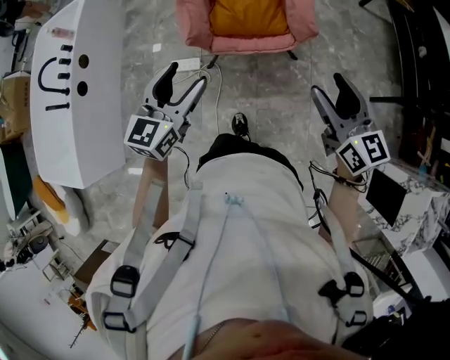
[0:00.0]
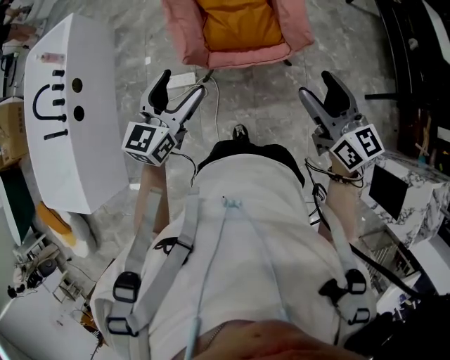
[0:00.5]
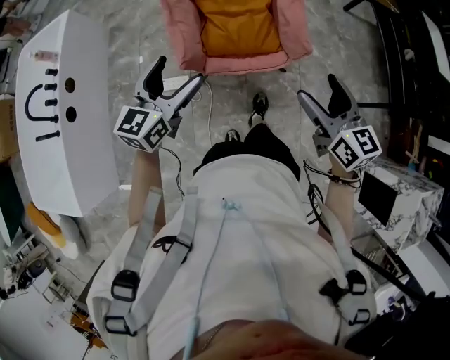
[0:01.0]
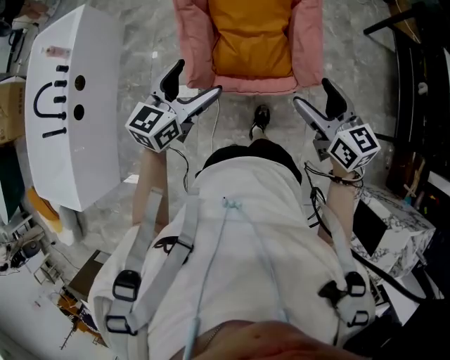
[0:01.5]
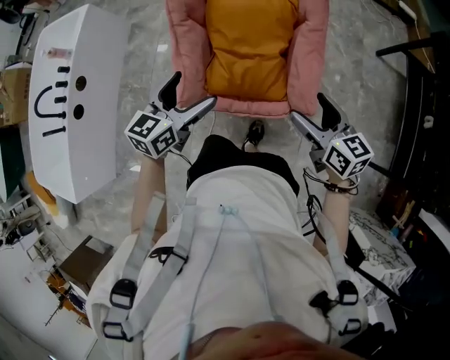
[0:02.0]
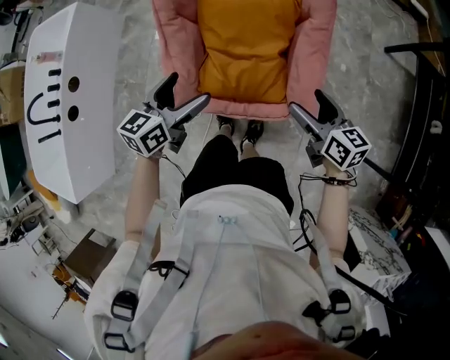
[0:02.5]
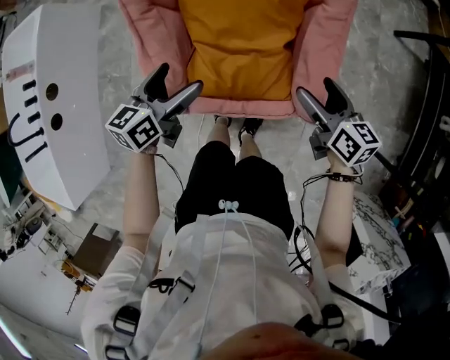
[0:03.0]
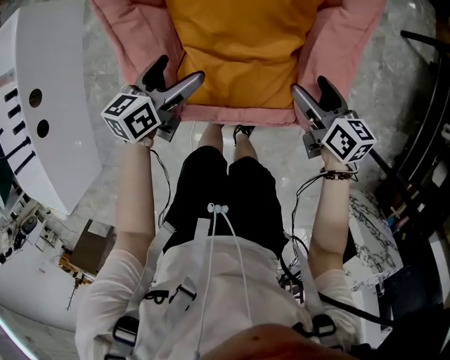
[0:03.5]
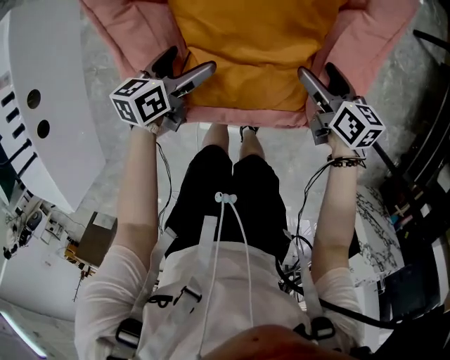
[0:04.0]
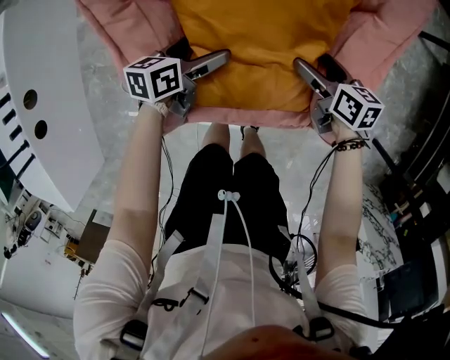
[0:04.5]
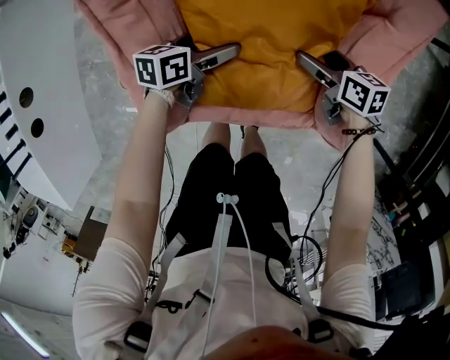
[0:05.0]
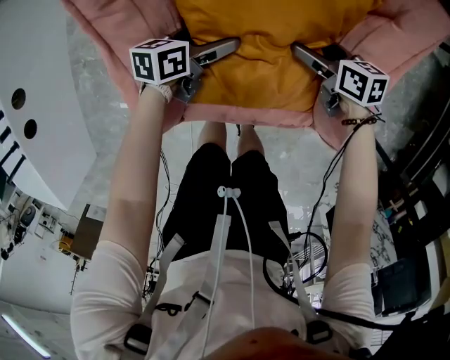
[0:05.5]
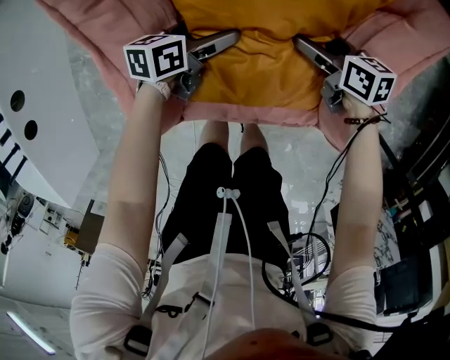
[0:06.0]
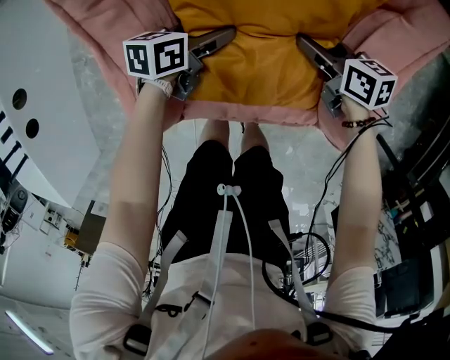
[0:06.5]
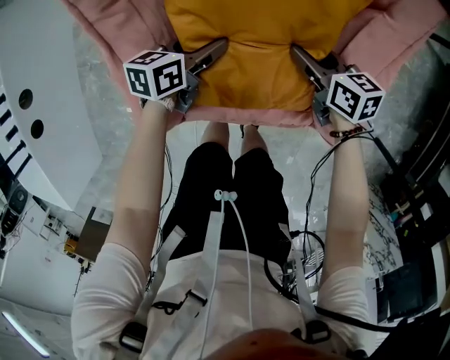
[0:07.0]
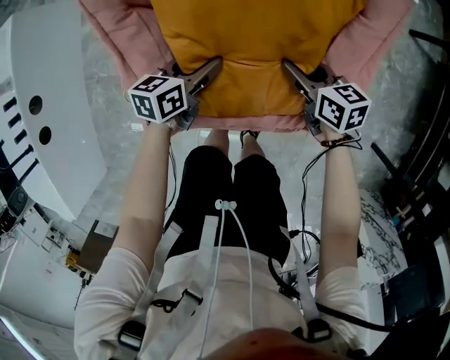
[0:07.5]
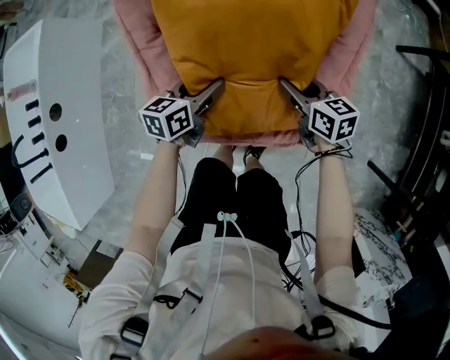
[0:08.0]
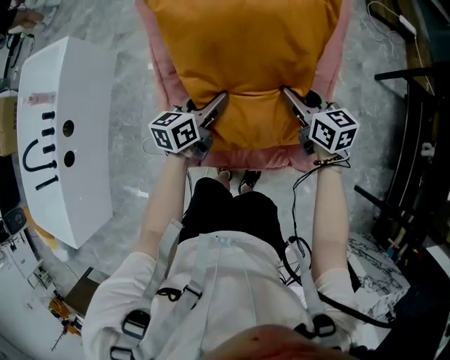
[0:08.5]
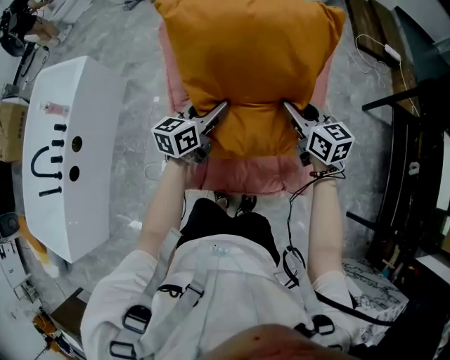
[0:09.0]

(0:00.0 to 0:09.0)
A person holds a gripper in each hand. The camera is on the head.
0:00.0 - 0:02.0: Both grippers move forward, approximately 35 cm. The left gripper opens up, while the right gripper changes its angle by roughly 20 degrees.
0:02.0 - 0:04.5: Both grippers travel together downward and forward, roughly 50 cm. The right gripper rotates roughly 30 degrees. The left gripper rotates some 40 degrees.
0:04.5 - 0:07.0: The left gripper moves approximately 10 cm downward and comes back, and closes up. Meanwhile the right gripper closes.
0:07.0 - 0:09.0: Both grippers move upward, roughly 35 cm. The right gripper changes its angle by roughly 30 degrees, while the left gripper turns by roughly 30 degrees.

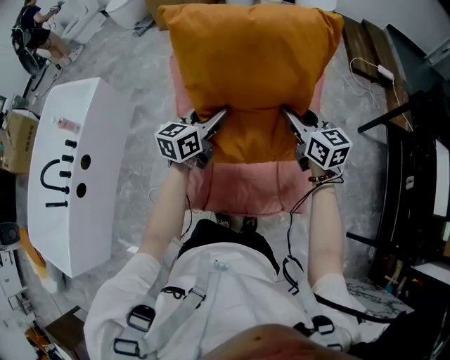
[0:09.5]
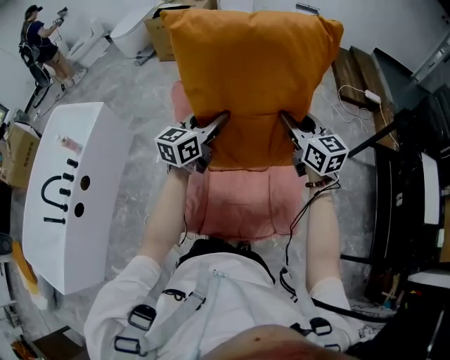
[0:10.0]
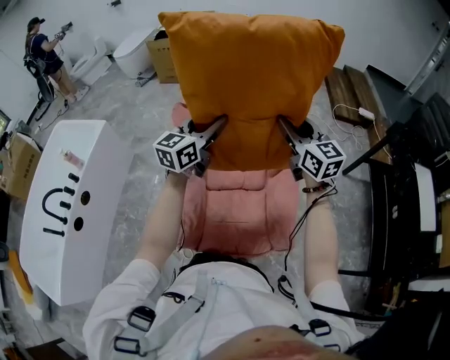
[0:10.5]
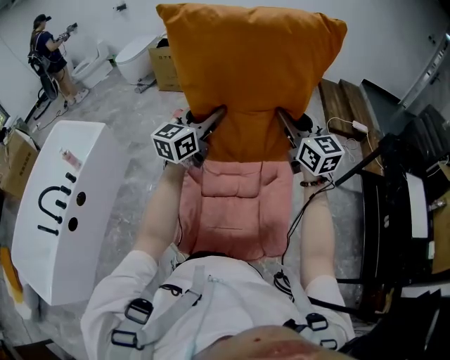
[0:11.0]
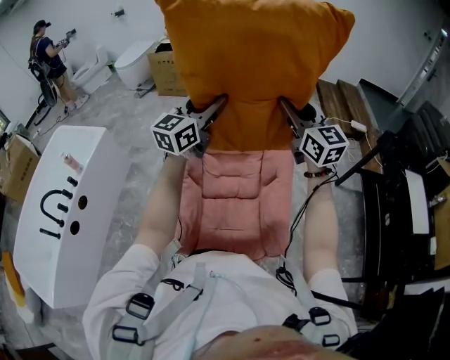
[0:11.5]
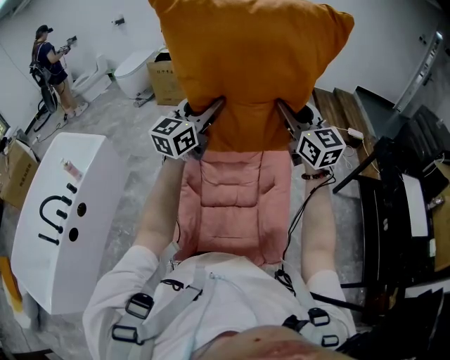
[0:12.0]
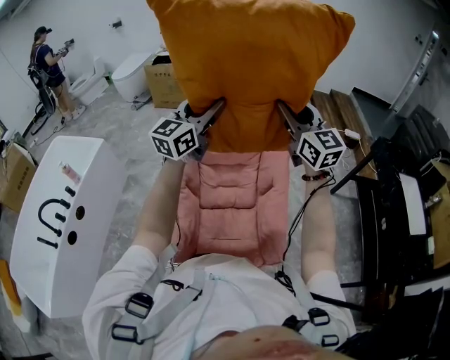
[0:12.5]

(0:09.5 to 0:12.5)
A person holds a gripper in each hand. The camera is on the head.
0:09.5 - 0:11.0: Both grippers travel together upward, roughly 20 cm. The right gripper swivels approximately 20 degrees. The left gripper swivels about 20 degrees.
0:11.0 - 0:12.5: The grippers both shift upward by some 5 cm.

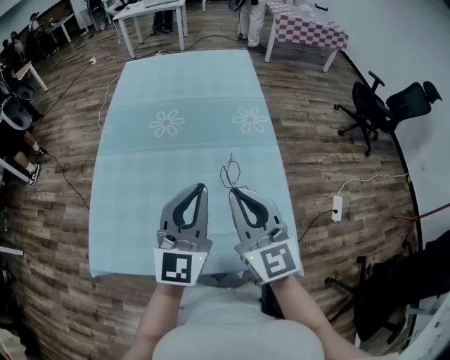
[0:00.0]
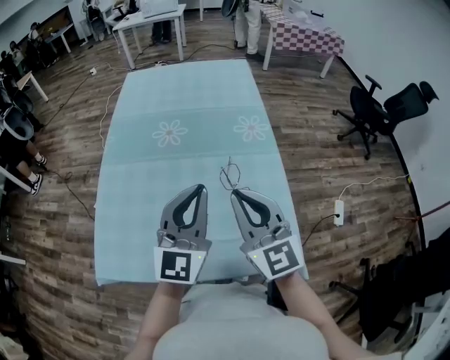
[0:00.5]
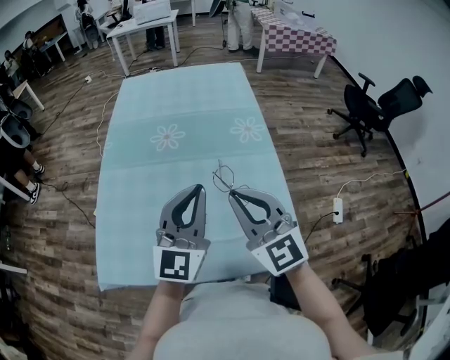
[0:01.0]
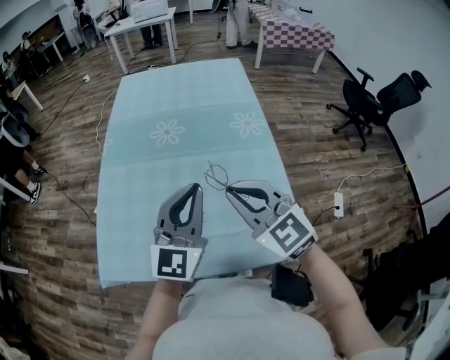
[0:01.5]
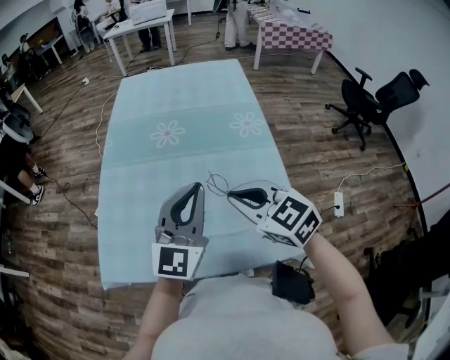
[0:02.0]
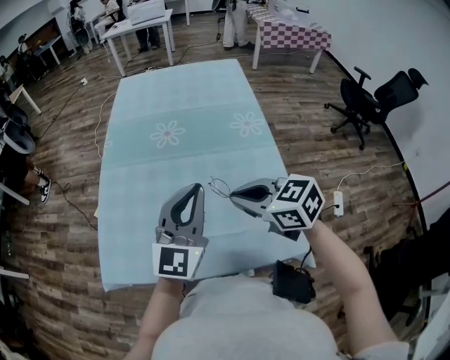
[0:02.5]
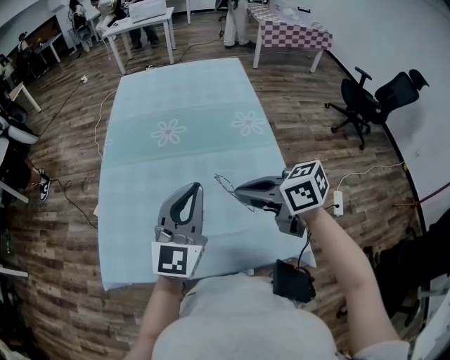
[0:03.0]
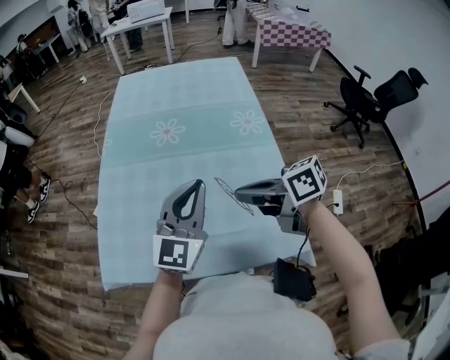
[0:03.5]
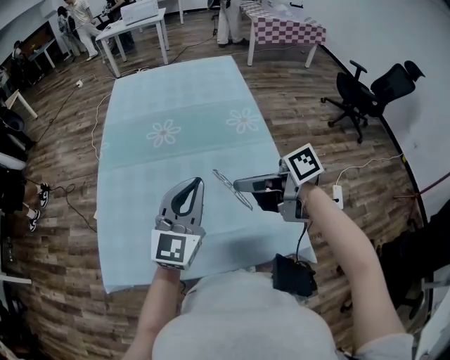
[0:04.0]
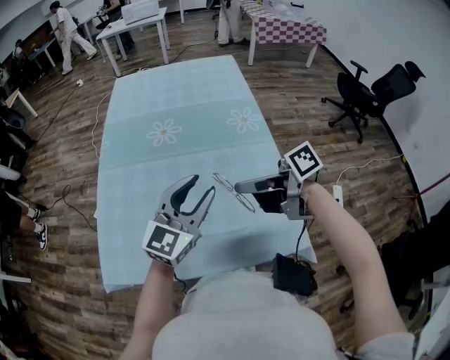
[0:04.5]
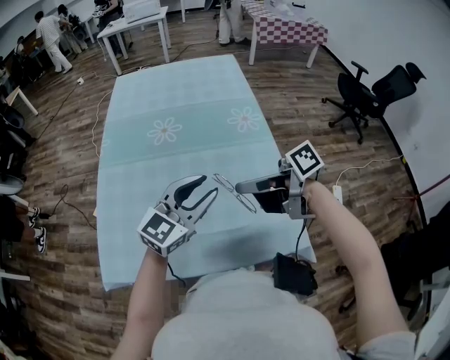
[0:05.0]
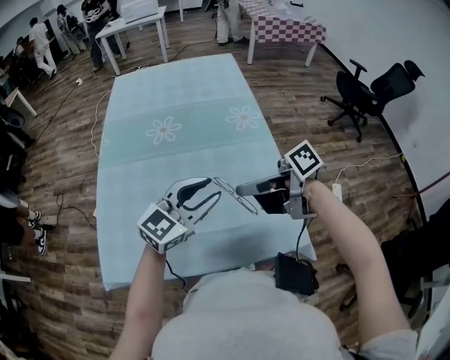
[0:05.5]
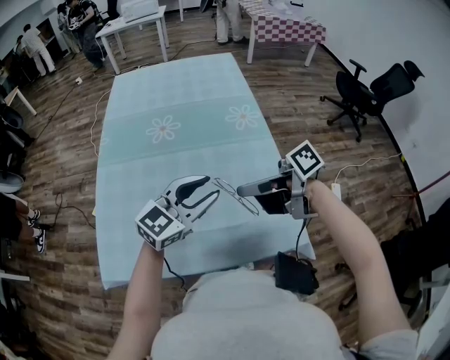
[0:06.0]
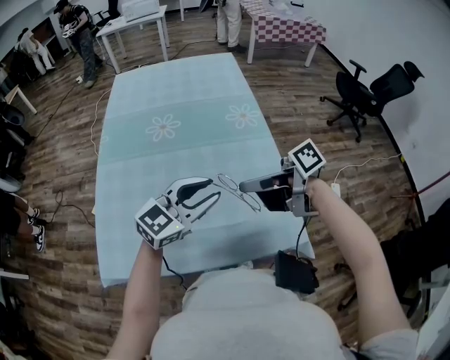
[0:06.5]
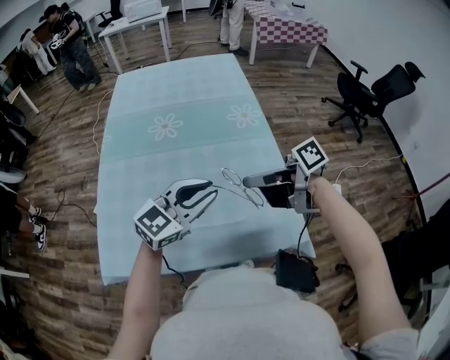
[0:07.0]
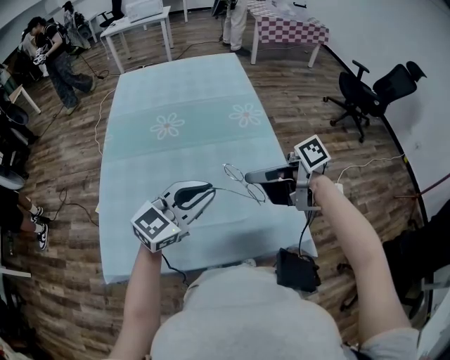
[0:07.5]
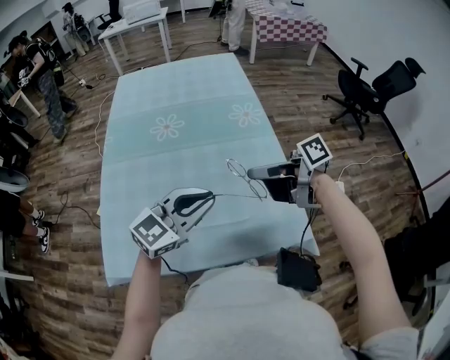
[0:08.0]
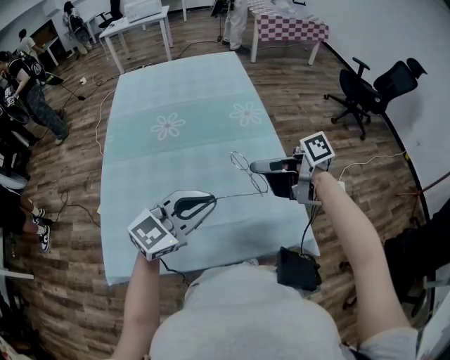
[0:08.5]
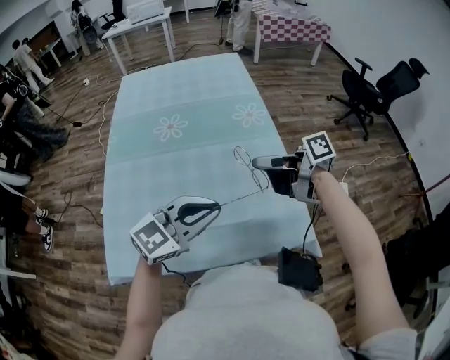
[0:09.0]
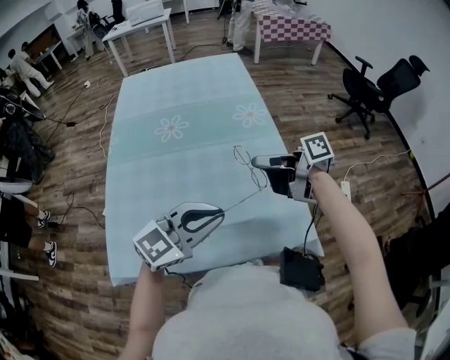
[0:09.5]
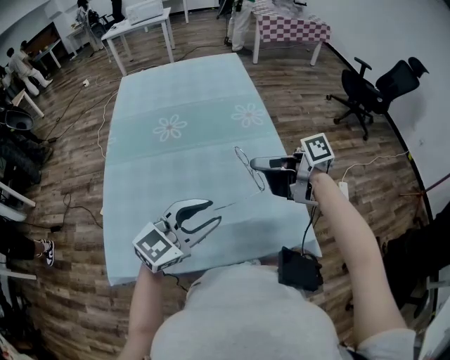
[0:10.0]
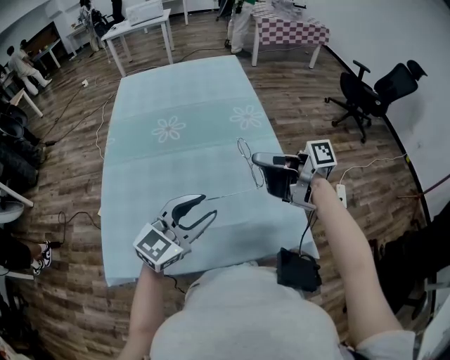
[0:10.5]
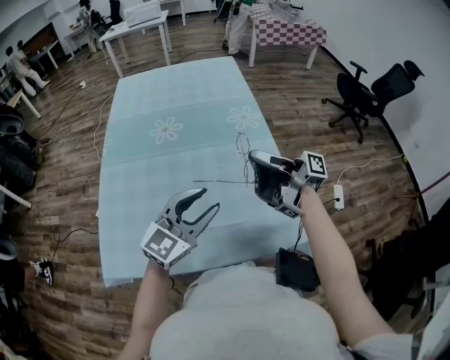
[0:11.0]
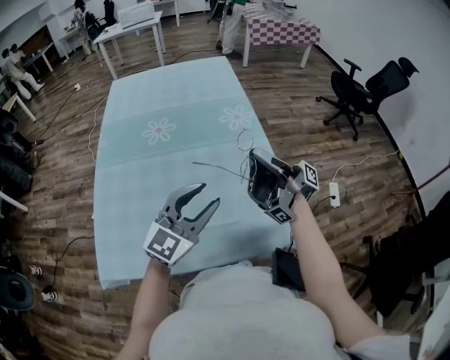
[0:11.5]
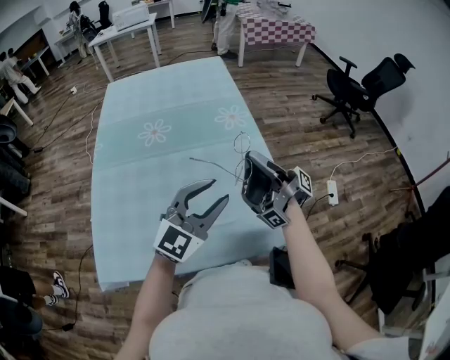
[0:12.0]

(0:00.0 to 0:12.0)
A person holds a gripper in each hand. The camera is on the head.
0:04.0 - 0:06.0: The left gripper ends up some 5 cm from where it was, changes its angle by some 30 degrees, and opens.
0:06.0 - 0:08.0: The left gripper closes up.
0:08.0 - 0:10.0: The left gripper opens.
0:10.0 - 0:12.0: The left gripper changes place by approximately 5 cm.

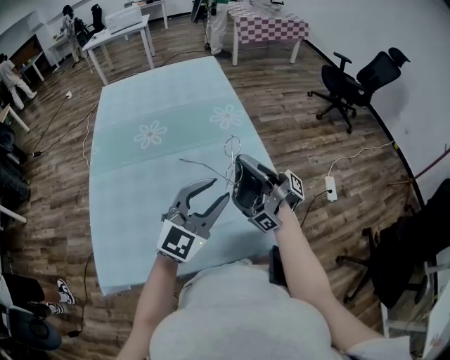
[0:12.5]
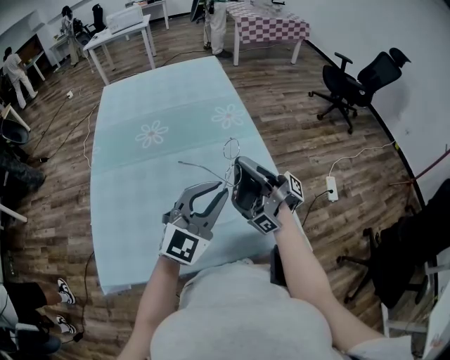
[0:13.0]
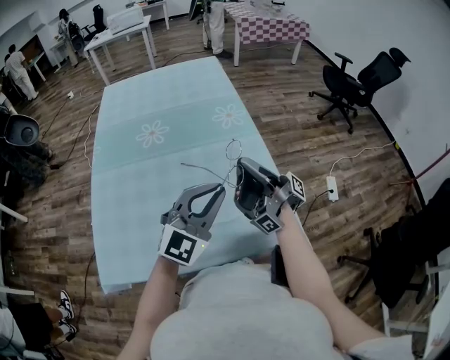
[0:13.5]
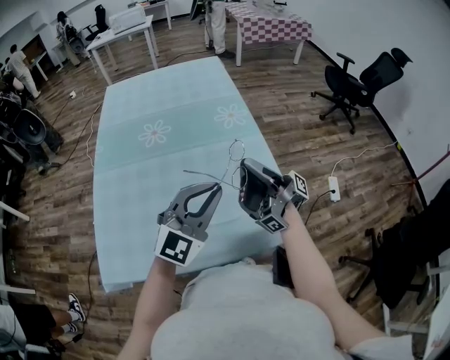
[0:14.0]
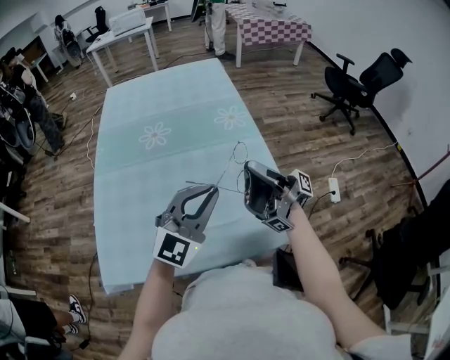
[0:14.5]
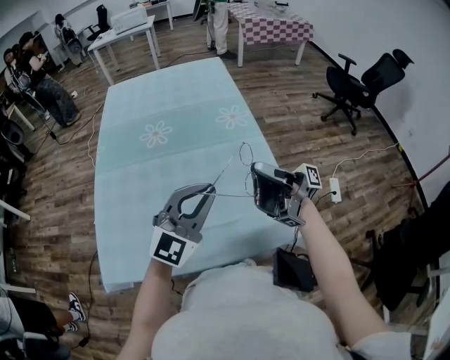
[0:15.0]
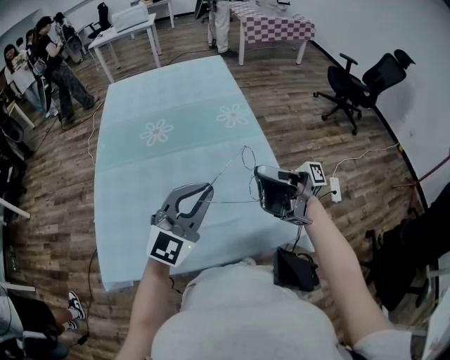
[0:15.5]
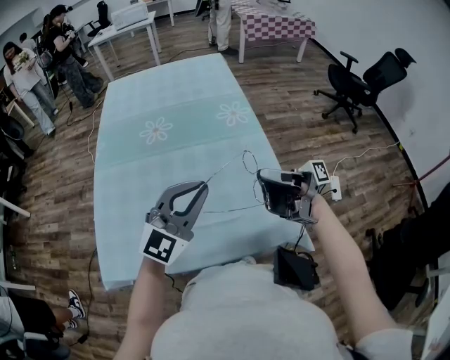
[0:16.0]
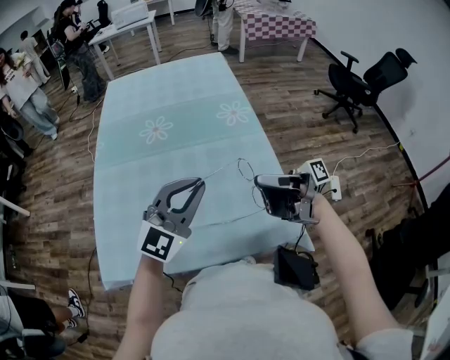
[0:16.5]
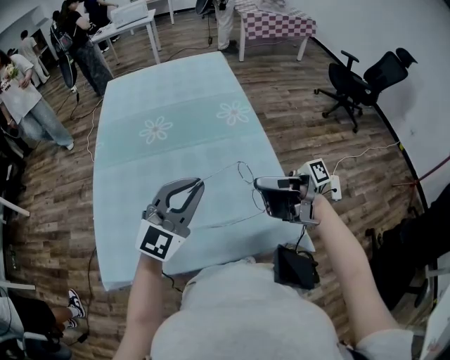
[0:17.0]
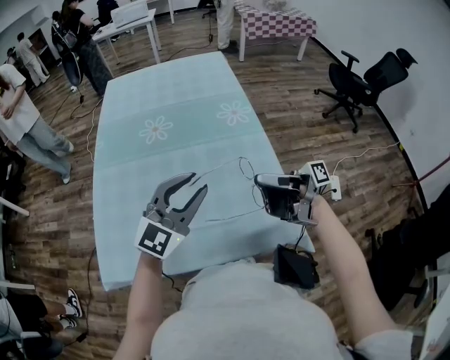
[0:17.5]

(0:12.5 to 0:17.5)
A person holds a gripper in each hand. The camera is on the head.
0:12.5 - 0:15.0: The left gripper closes.
0:15.0 - 0:17.5: The left gripper opens its fingers.
